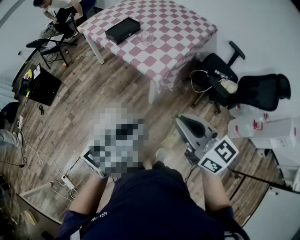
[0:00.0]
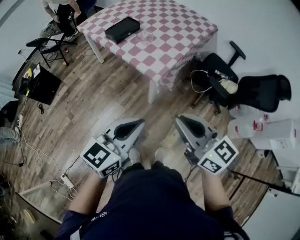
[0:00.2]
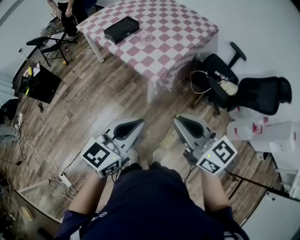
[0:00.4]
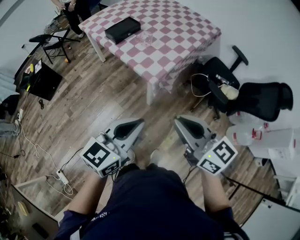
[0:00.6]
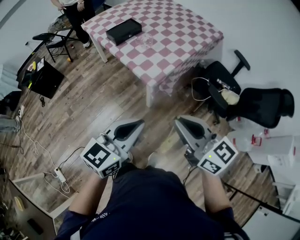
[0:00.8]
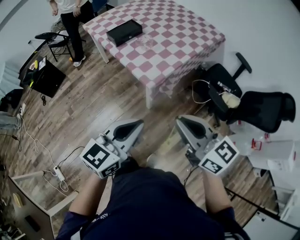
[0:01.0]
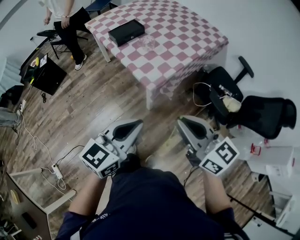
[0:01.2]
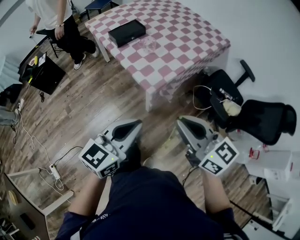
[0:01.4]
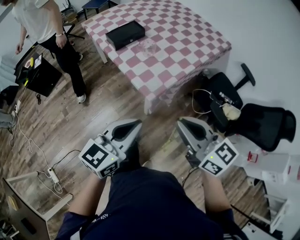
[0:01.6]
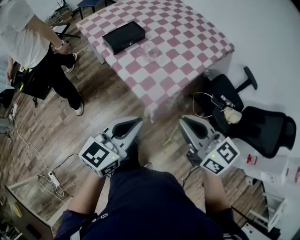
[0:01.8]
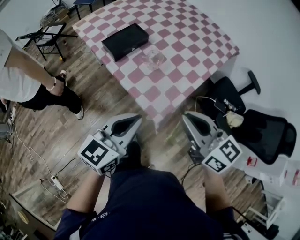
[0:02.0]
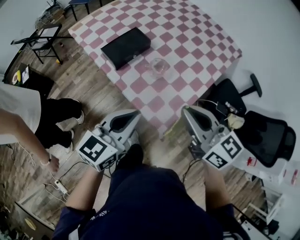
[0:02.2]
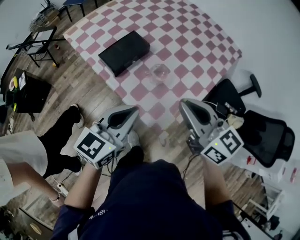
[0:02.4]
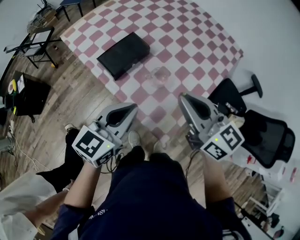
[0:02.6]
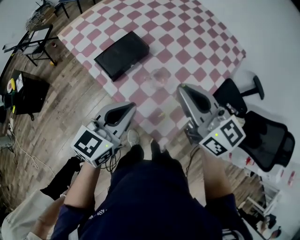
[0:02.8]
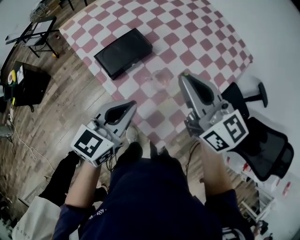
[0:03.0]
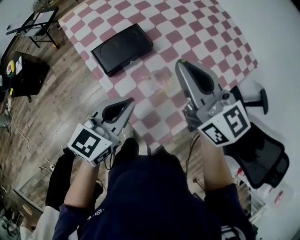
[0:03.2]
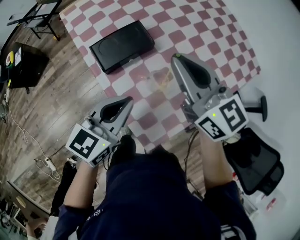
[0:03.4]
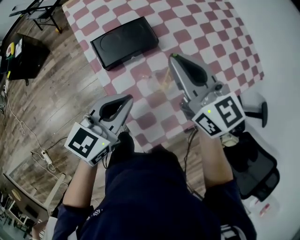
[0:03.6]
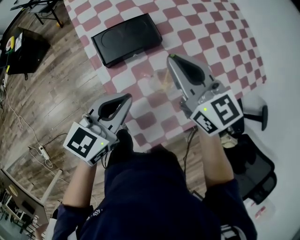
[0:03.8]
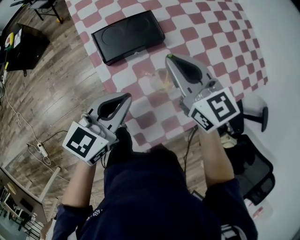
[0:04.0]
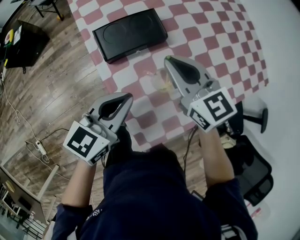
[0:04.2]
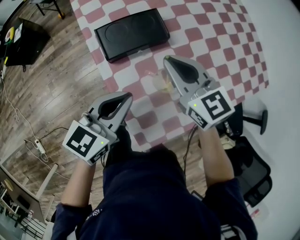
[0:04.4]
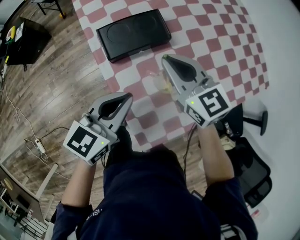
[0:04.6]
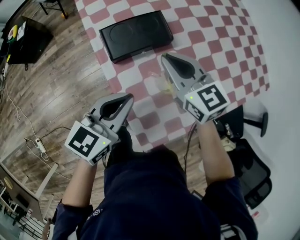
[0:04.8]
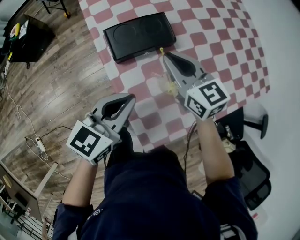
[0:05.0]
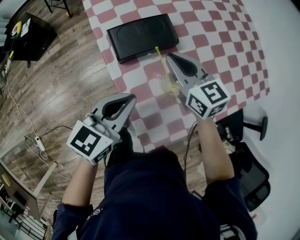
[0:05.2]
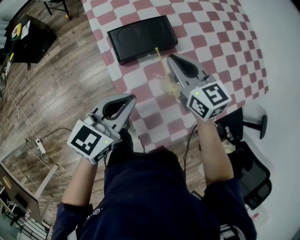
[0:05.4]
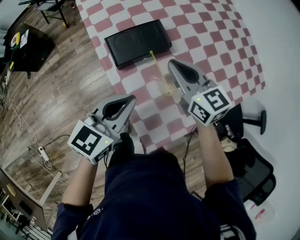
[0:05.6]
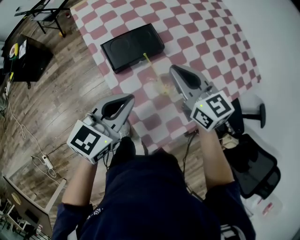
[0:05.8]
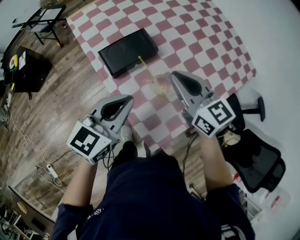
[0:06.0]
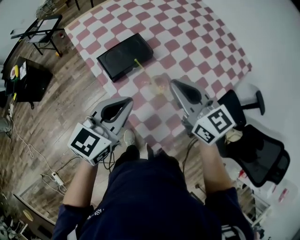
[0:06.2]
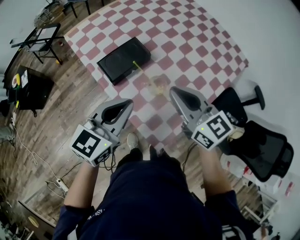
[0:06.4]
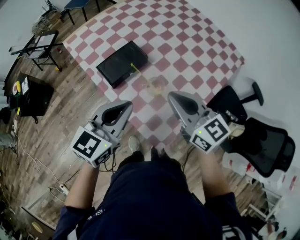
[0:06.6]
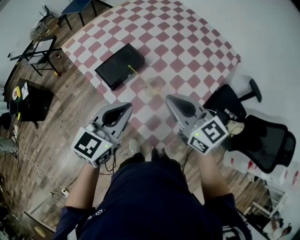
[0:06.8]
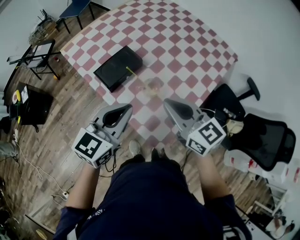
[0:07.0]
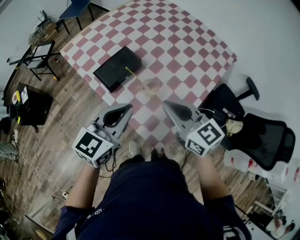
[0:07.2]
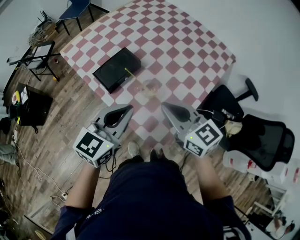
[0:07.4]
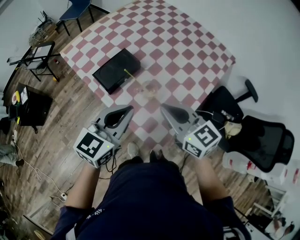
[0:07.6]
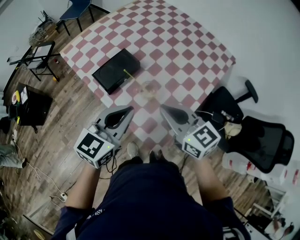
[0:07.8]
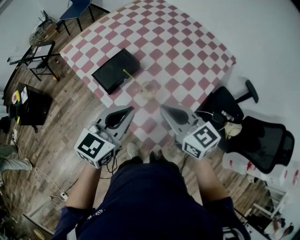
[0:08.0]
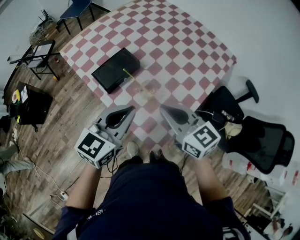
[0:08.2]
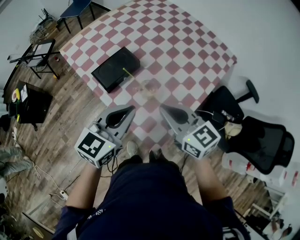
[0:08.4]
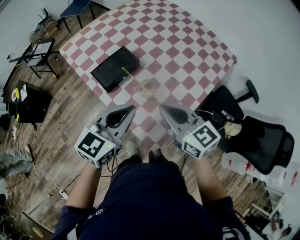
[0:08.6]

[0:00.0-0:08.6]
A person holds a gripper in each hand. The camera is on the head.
0:00.0 to 0:01.4: Both grippers move forward and to the right, approximately 10 cm.
0:01.4 to 0:02.8: The pair of grippers is taken forward, roughly 50 cm.
0:02.8 to 0:04.4: The right gripper travels downward and forward by approximately 20 cm, and swivels approximately 30 degrees. The left gripper is displaced downward and forward by about 10 cm, and changes its angle by roughly 20 degrees.
0:04.4 to 0:05.8: The left gripper shifts roughly 5 cm upward.
0:05.8 to 0:07.2: The right gripper shifts about 15 cm backward and upward. The left gripper travels upward and backward by some 10 cm.
0:07.2 to 0:08.6: The grippers move only a little.

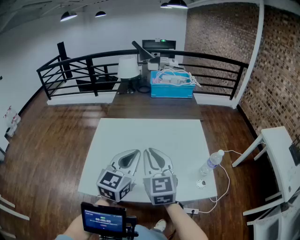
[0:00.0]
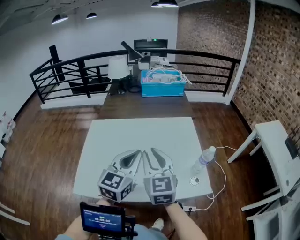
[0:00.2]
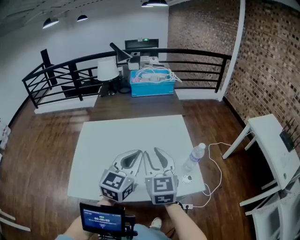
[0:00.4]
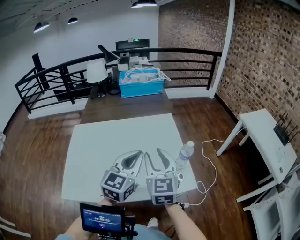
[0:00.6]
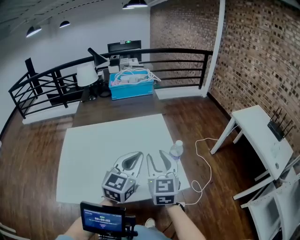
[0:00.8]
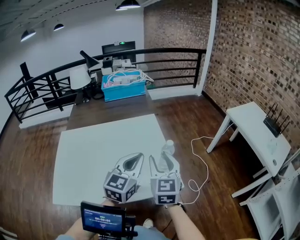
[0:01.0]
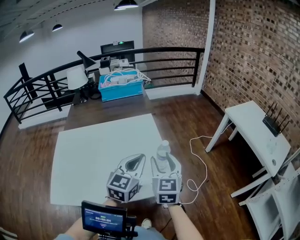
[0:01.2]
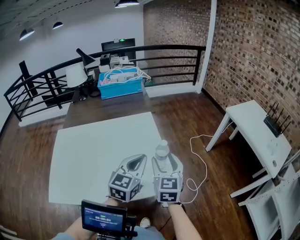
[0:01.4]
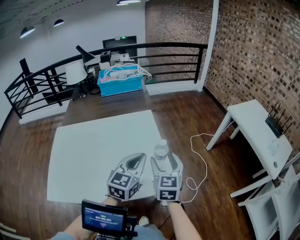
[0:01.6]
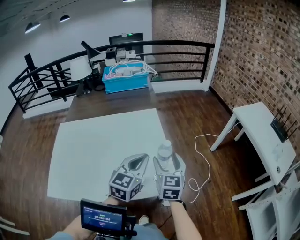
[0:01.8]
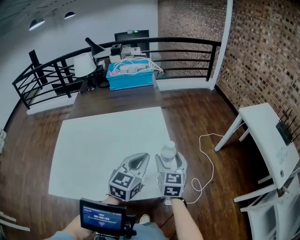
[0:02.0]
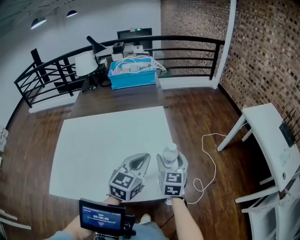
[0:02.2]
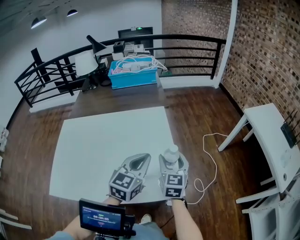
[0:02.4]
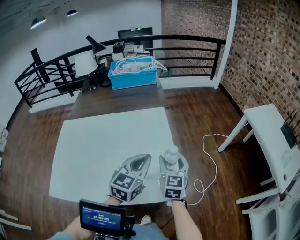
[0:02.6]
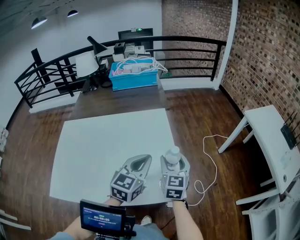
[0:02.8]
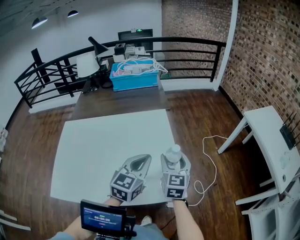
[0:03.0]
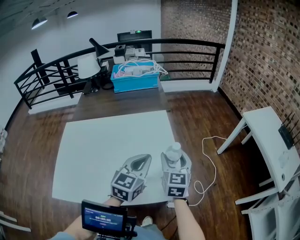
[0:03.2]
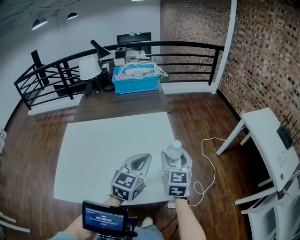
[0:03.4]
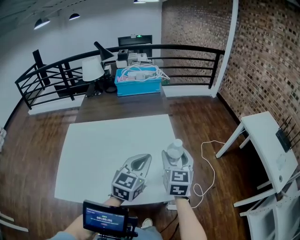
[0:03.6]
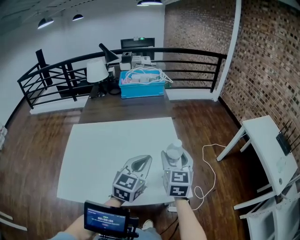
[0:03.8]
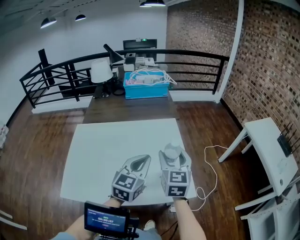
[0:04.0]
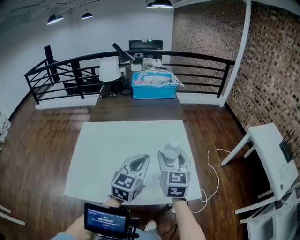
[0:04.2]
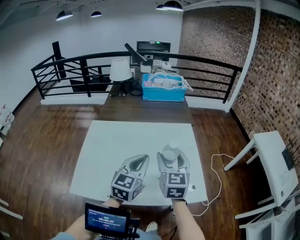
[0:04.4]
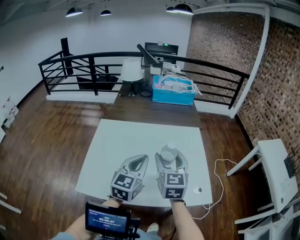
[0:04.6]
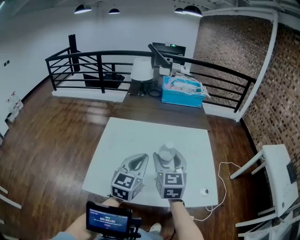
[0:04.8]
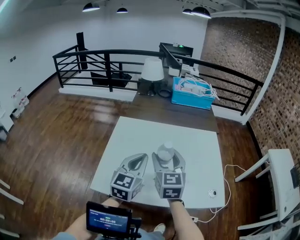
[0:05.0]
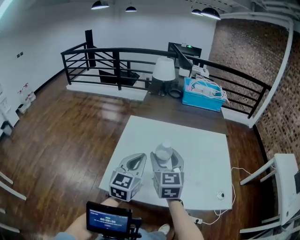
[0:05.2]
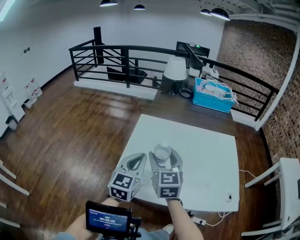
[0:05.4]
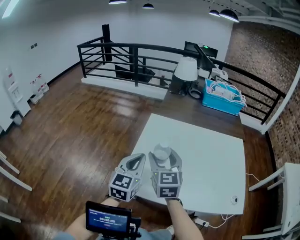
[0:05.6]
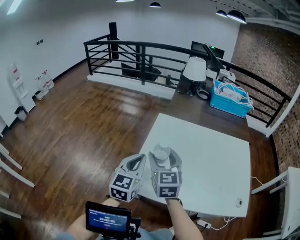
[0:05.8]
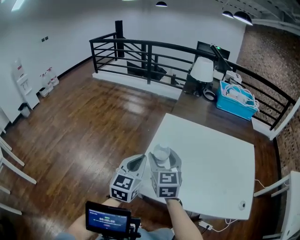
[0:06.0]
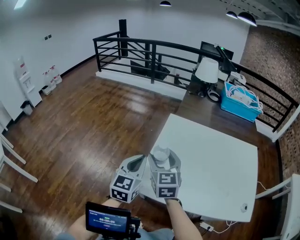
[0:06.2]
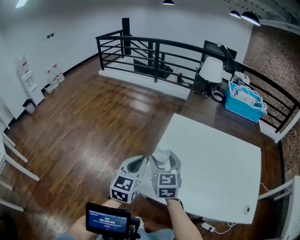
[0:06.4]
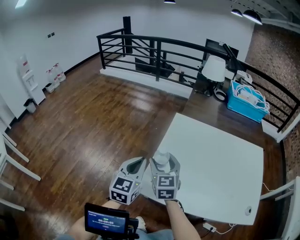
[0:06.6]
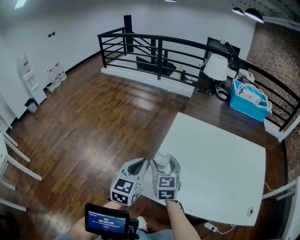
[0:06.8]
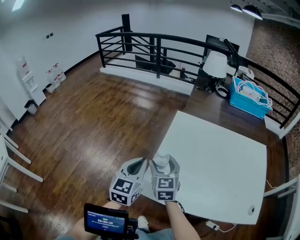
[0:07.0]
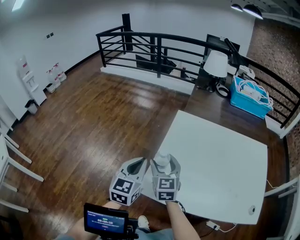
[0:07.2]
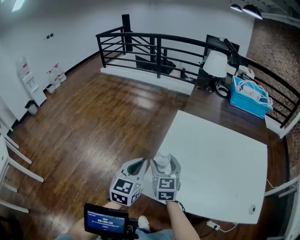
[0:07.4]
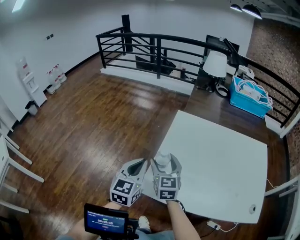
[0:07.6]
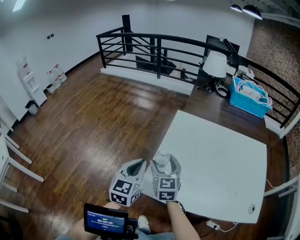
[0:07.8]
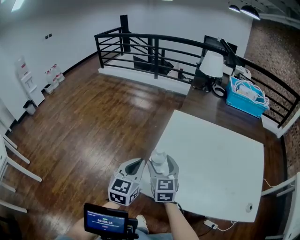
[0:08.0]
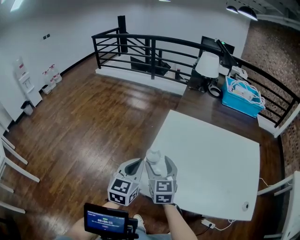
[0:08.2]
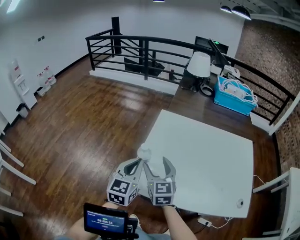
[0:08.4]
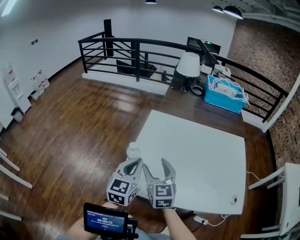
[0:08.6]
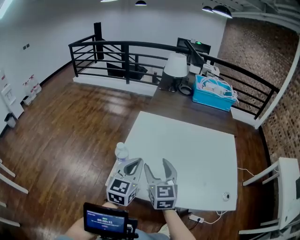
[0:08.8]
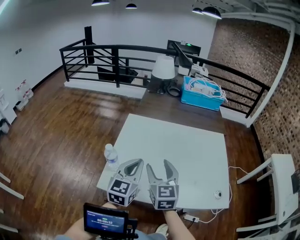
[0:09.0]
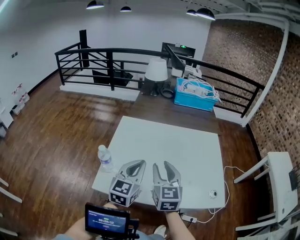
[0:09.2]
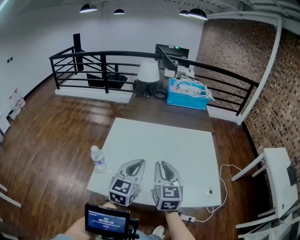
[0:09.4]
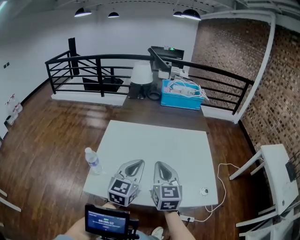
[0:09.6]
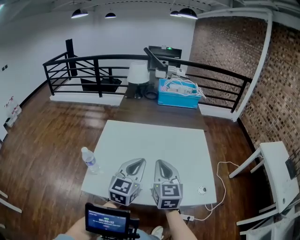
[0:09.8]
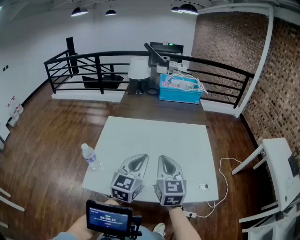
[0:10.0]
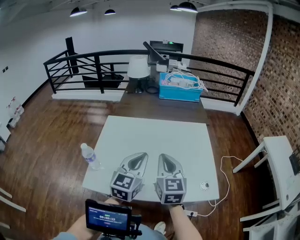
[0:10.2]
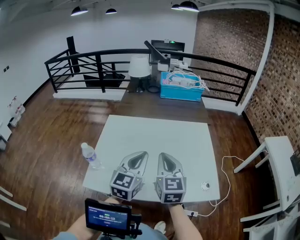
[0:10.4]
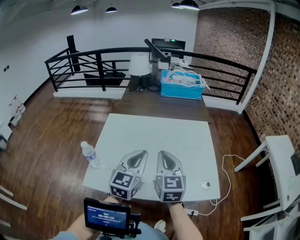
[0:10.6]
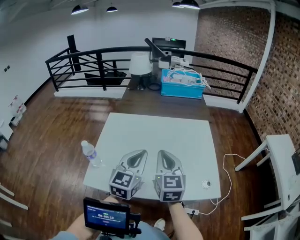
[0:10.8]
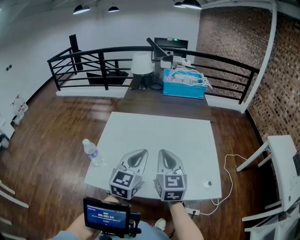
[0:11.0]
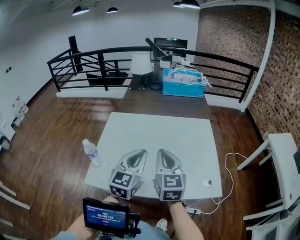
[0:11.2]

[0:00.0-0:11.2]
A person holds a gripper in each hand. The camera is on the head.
0:00.0 to 0:01.6: The grippers both shift to the right by approximately 30 cm. The right gripper rotates some 30 degrees, and opens its fingers.
0:01.6 to 0:03.2: The right gripper goes about 5 cm forward.
0:03.2 to 0:04.8: Both grippers travel together to the left, some 30 cm.
0:04.8 to 0:06.4: The two grippers go about 35 cm to the left. The left gripper changes its angle by some 20 degrees; the right gripper rotates some 20 degrees.
0:06.4 to 0:08.0: The grippers move only a little.
0:08.0 to 0:09.6: Both grippers travel together to the right, approximately 30 cm. The right gripper turns by about 20 degrees, and closes. Meanwhile the left gripper turns by some 20 degrees.
0:09.6 to 0:11.2: The grippers move only a little.

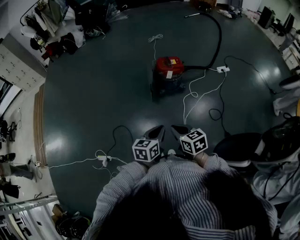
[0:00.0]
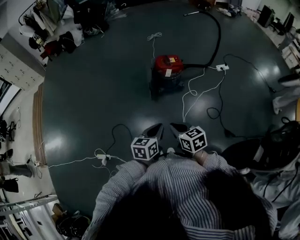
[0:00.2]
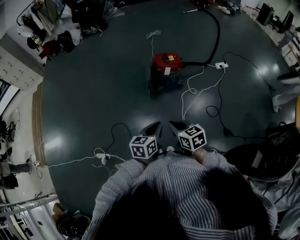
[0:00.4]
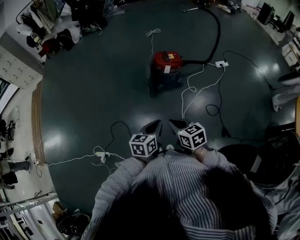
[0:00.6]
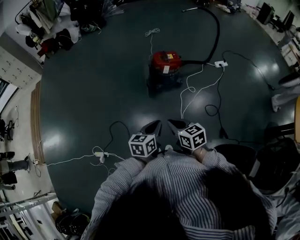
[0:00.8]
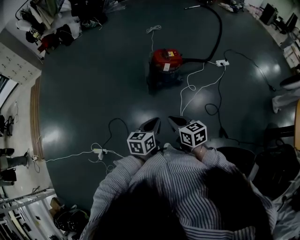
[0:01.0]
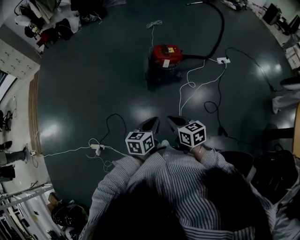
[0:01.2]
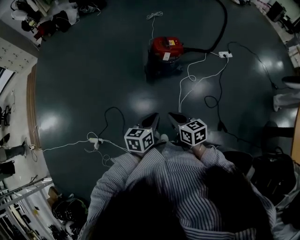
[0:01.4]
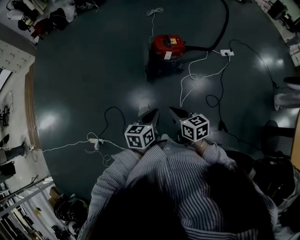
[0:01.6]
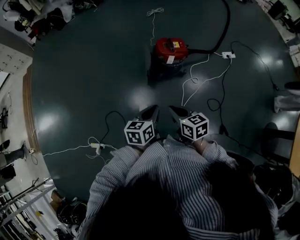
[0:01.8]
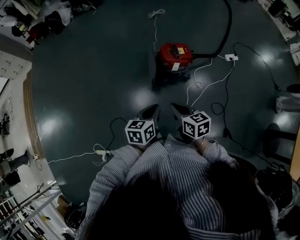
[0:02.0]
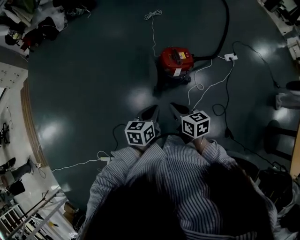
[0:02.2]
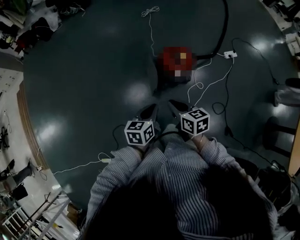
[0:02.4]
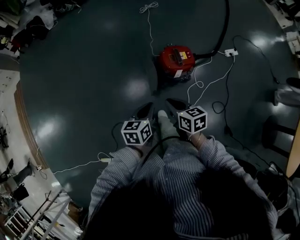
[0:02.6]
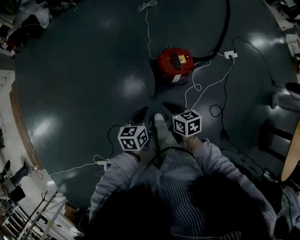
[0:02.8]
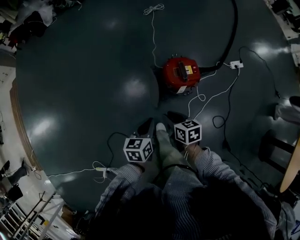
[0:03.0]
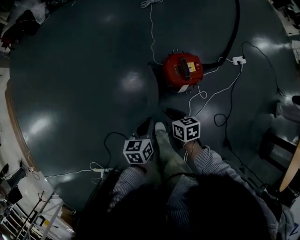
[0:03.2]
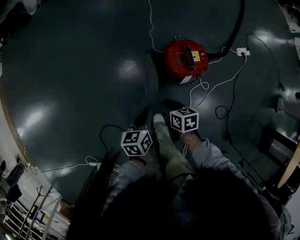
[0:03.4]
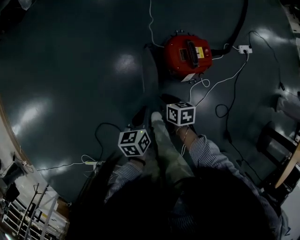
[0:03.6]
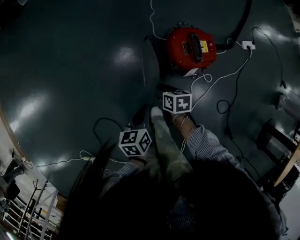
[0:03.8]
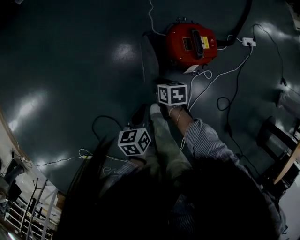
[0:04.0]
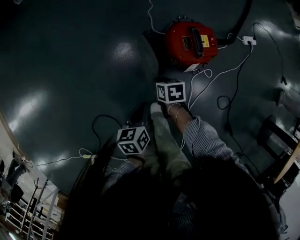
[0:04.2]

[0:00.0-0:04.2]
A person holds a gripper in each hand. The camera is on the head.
0:00.0 to 0:01.4: The right gripper is displaced forward by approximately 5 cm. The left gripper moves some 5 cm.
0:01.4 to 0:02.8: The two grippers travel together, forward, about 40 cm.
0:02.8 to 0:04.2: The grippers both shift downward by roughly 30 cm. The right gripper changes its angle by roughly 30 degrees.
